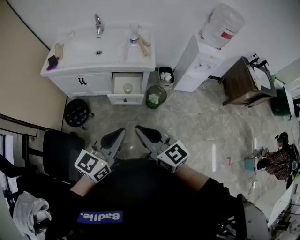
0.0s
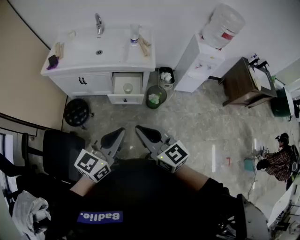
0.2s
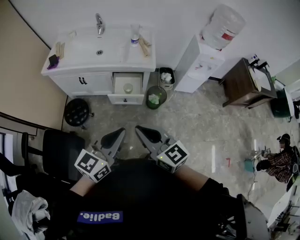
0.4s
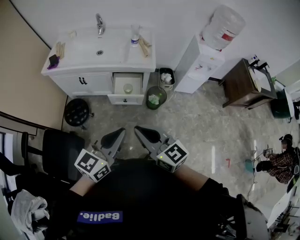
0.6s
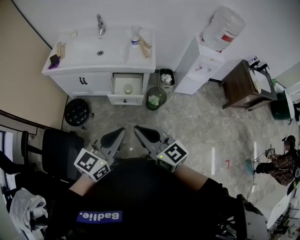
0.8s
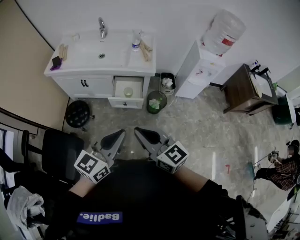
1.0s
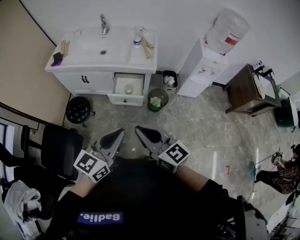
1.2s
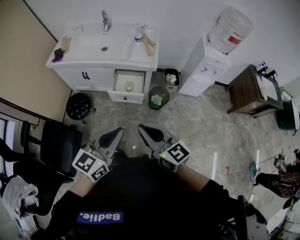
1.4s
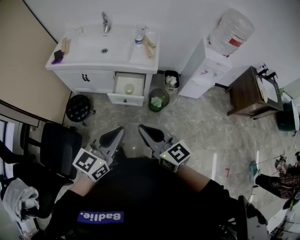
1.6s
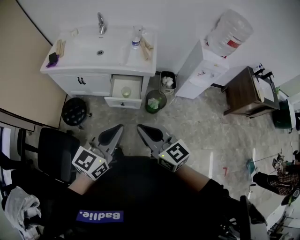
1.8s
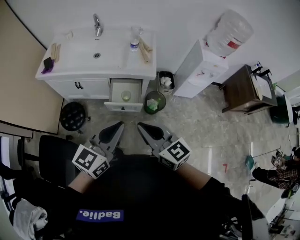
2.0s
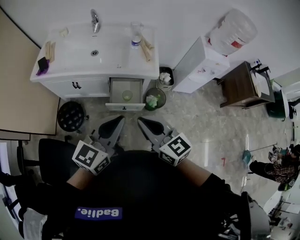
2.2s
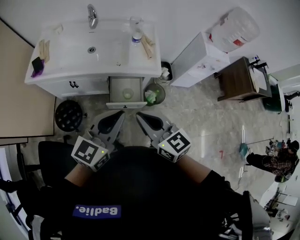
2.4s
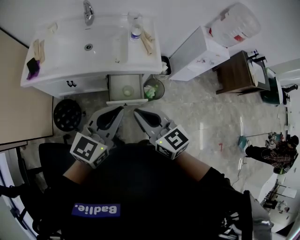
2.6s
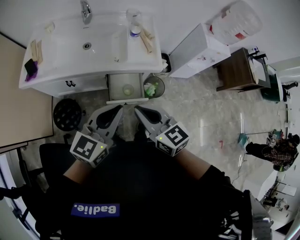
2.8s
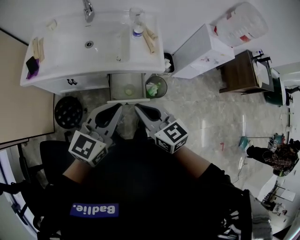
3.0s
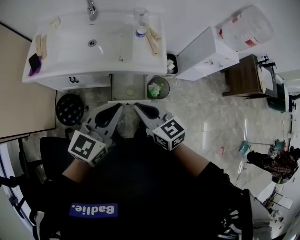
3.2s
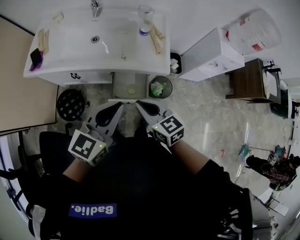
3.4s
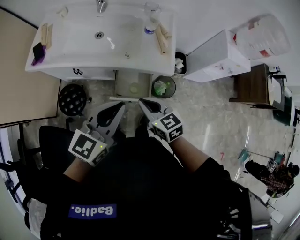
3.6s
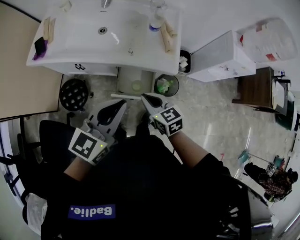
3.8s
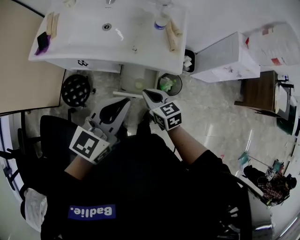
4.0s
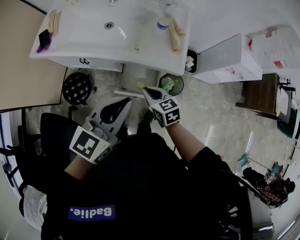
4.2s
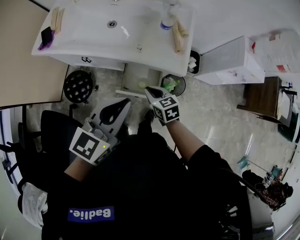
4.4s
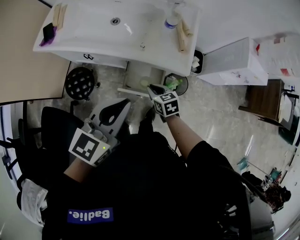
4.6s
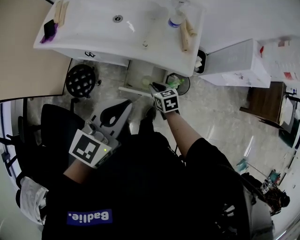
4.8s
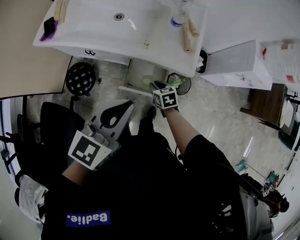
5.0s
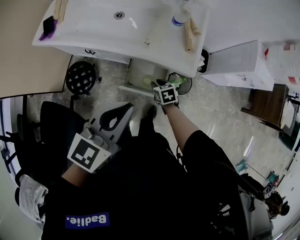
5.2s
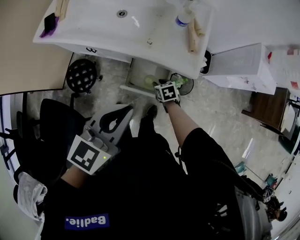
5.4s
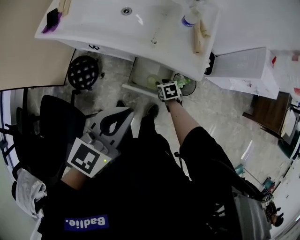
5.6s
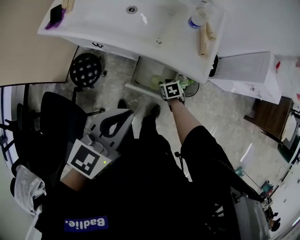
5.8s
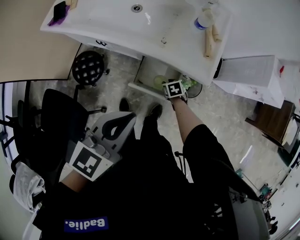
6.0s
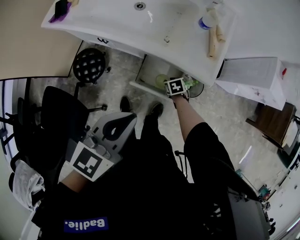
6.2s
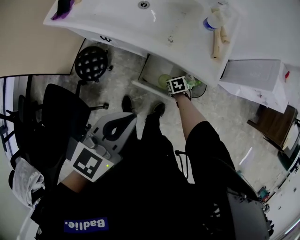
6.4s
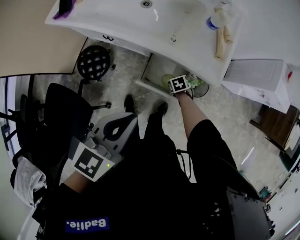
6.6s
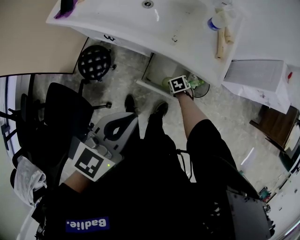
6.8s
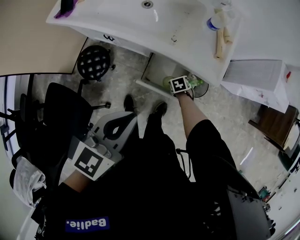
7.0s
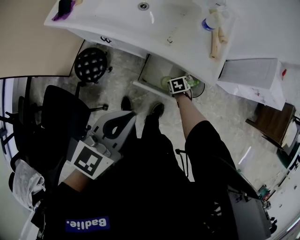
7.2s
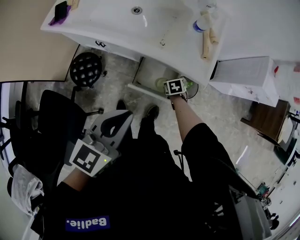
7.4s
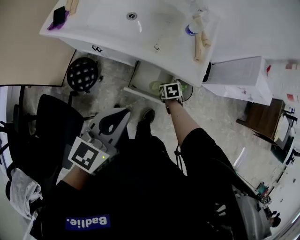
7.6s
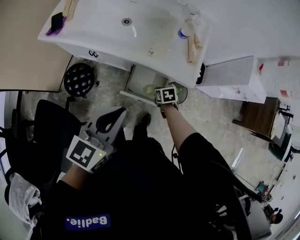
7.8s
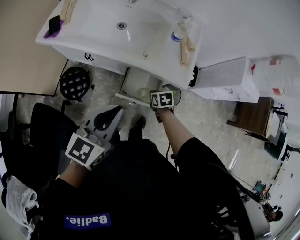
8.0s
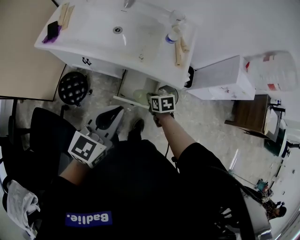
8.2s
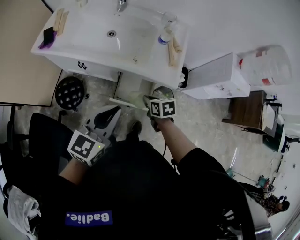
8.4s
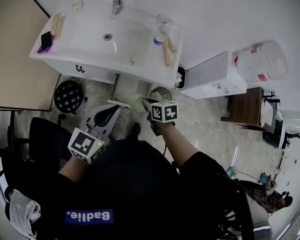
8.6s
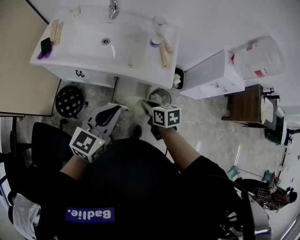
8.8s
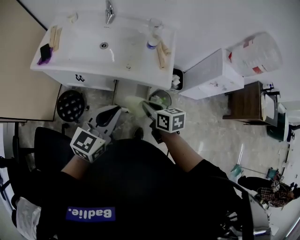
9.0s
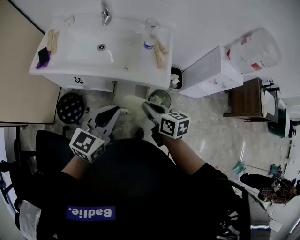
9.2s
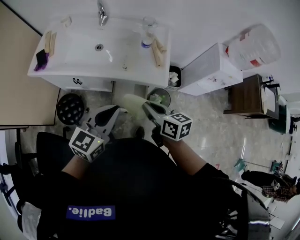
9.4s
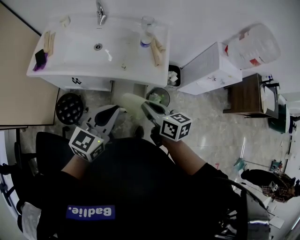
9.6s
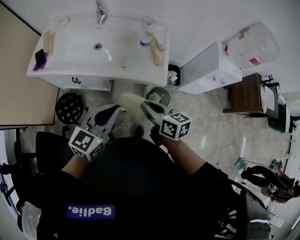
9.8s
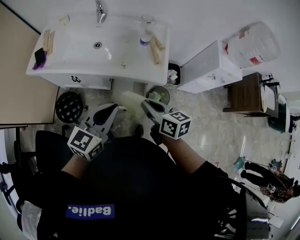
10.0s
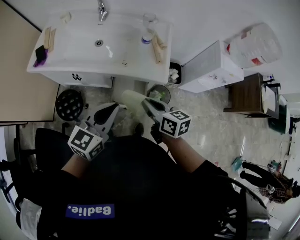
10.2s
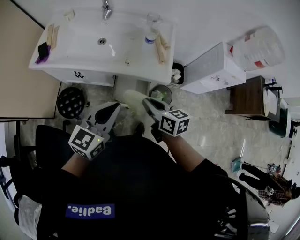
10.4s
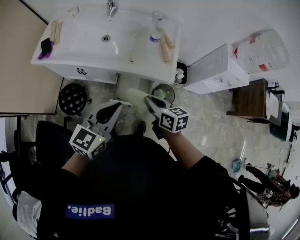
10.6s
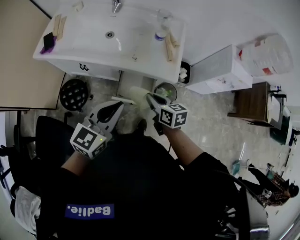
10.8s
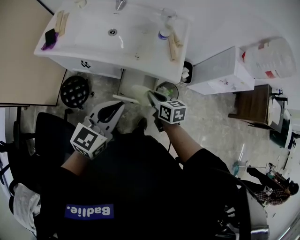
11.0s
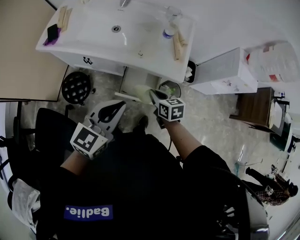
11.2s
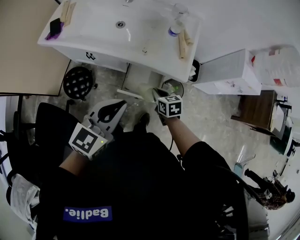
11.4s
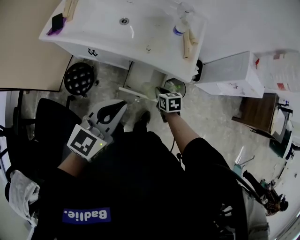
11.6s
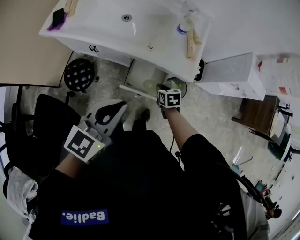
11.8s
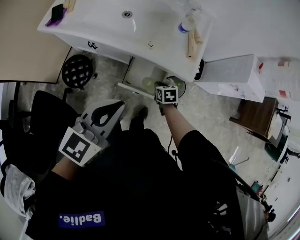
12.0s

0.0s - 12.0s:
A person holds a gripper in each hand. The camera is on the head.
0.0s - 1.6s: The right gripper travels to the right by approximately 5 cm.
1.6s - 3.0s: Both grippers move forward and to the left, some 30 cm.
3.0s - 4.4s: The right gripper moves downward and forward, roughly 25 cm, and turns by about 20 degrees; the left gripper shifts by about 5 cm.
4.4s - 6.0s: The right gripper heads downward, covering roughly 25 cm, rotates about 30 degrees, and opens its fingers; the left gripper moves downward, some 5 cm.
6.0s - 7.6s: The right gripper goes some 5 cm upward, and closes up.
7.6s - 9.0s: The right gripper travels upward by about 30 cm, and tips its fingers upward by about 30 degrees.
10.4s - 12.0s: The right gripper goes roughly 25 cm downward, and tips its fingers downward by approximately 30 degrees.

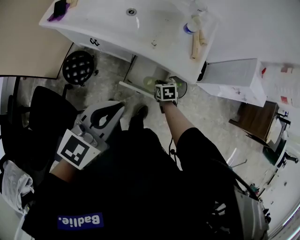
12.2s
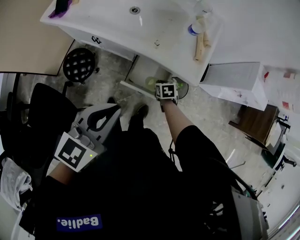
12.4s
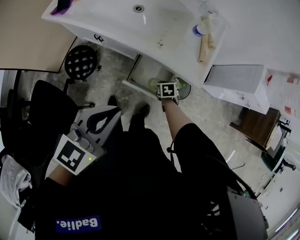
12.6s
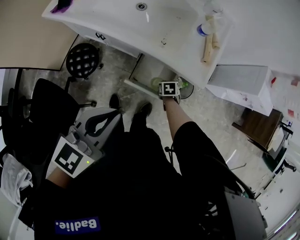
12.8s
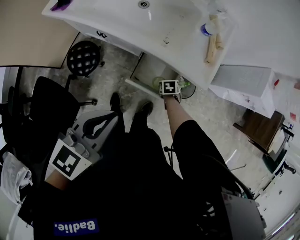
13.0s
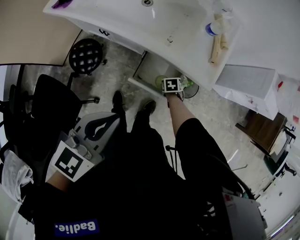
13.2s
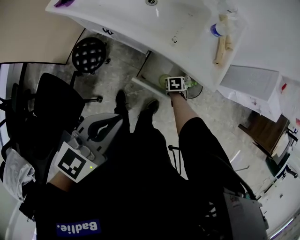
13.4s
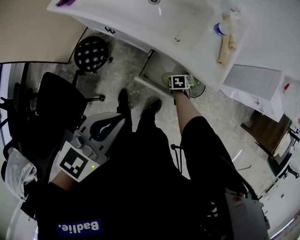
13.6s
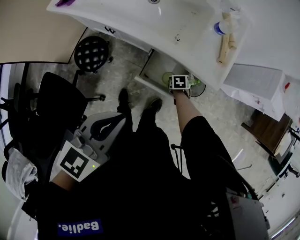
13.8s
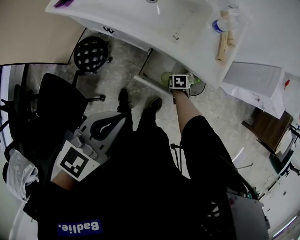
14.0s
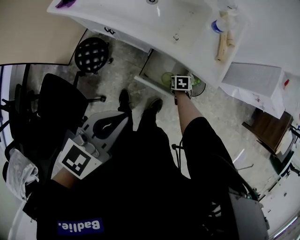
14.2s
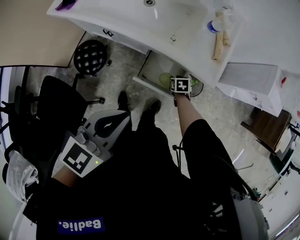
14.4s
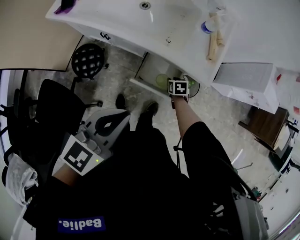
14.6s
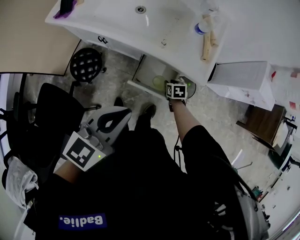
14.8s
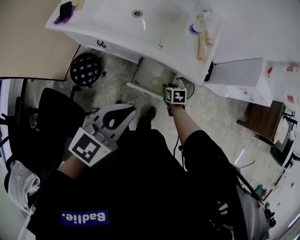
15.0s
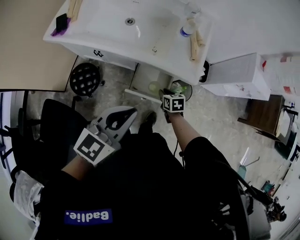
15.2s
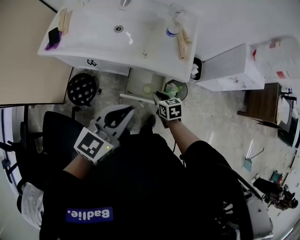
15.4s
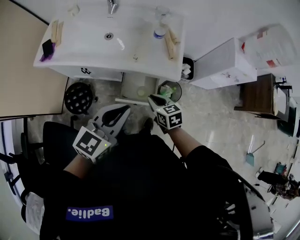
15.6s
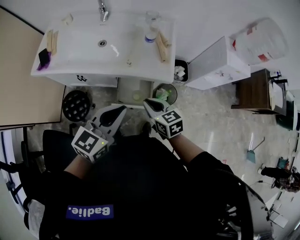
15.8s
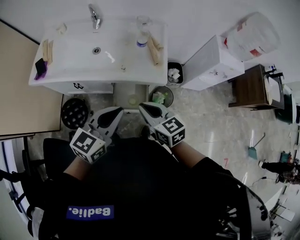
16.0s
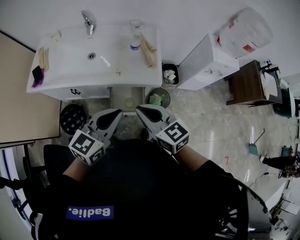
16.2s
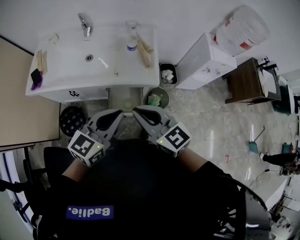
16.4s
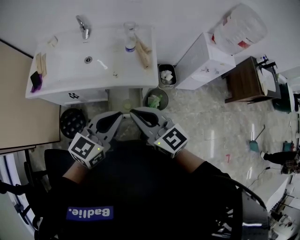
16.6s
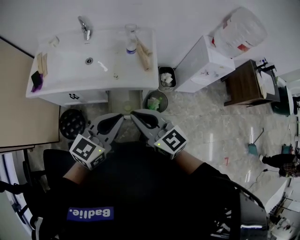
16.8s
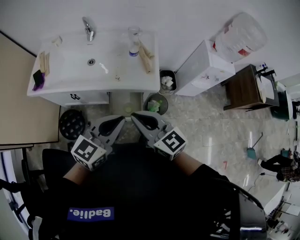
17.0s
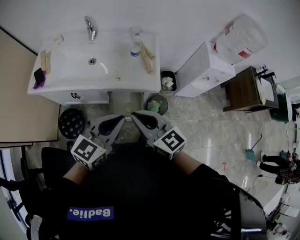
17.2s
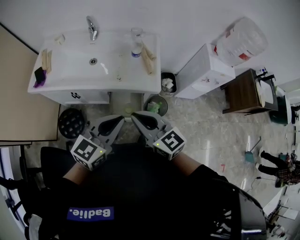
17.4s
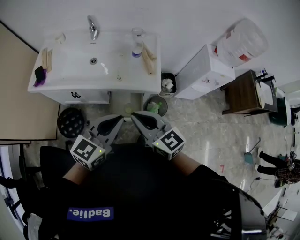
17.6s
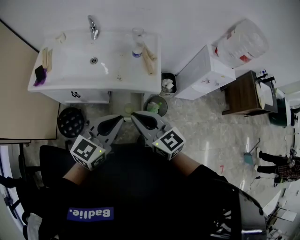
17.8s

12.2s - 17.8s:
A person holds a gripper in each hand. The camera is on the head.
12.2s - 13.6s: The left gripper travels downward by approximately 5 cm, while the right gripper shifts some 10 cm downward.
13.6s - 15.0s: The left gripper moves approximately 5 cm. Meanwhile the right gripper travels upward by roughly 10 cm, and opens up.
15.0s - 16.4s: The right gripper heads upward, covering approximately 40 cm, tilts its fingers about 50 degrees upward, and closes up; the left gripper is displaced to the right and upward by roughly 10 cm.
16.4s - 17.8s: The grippers make only small movements.

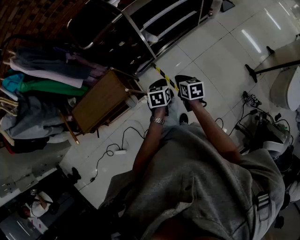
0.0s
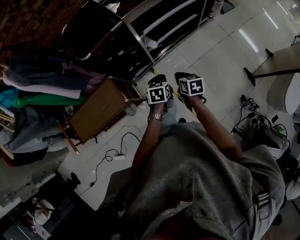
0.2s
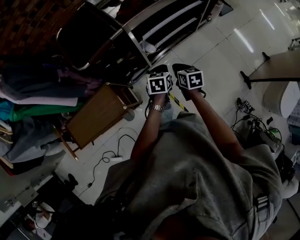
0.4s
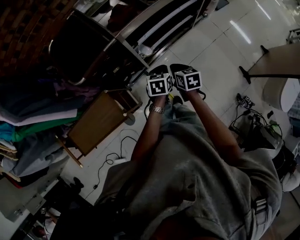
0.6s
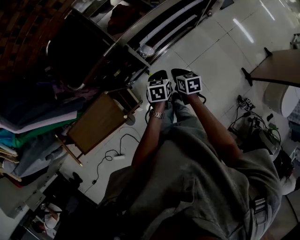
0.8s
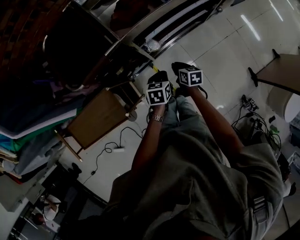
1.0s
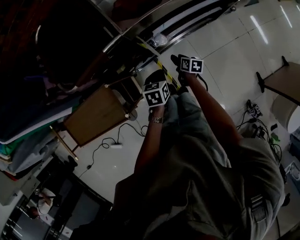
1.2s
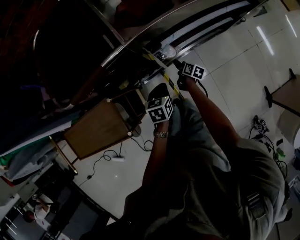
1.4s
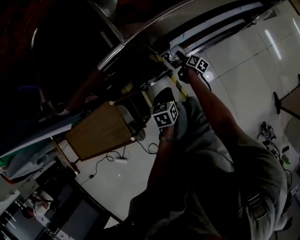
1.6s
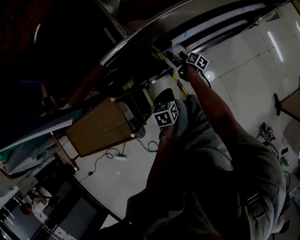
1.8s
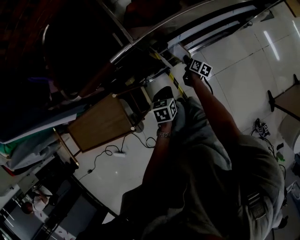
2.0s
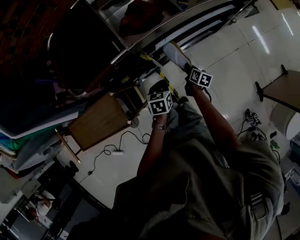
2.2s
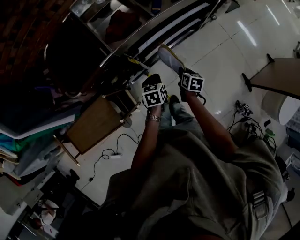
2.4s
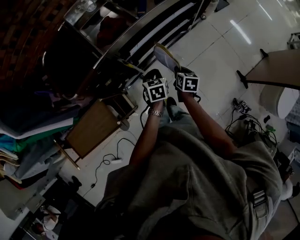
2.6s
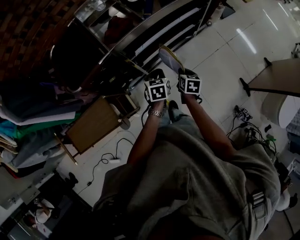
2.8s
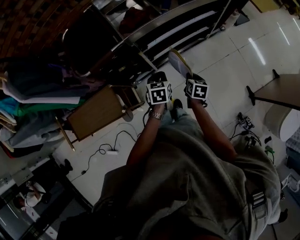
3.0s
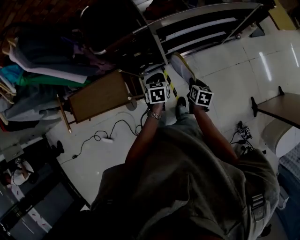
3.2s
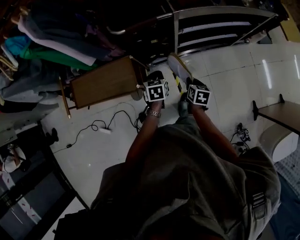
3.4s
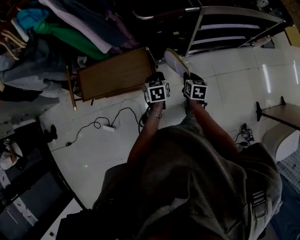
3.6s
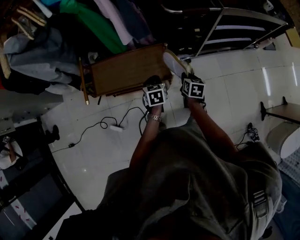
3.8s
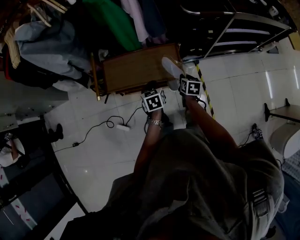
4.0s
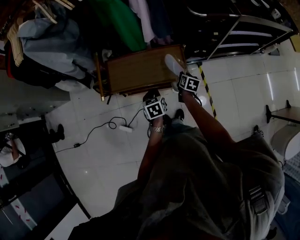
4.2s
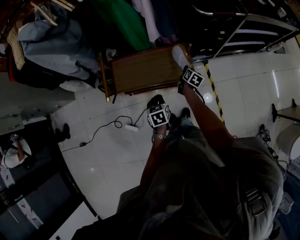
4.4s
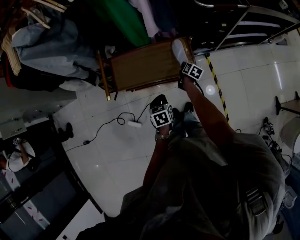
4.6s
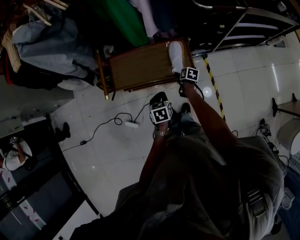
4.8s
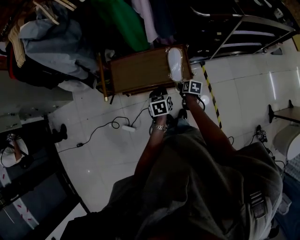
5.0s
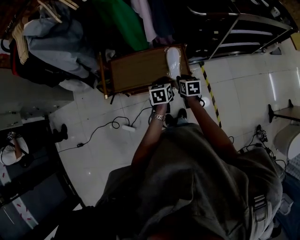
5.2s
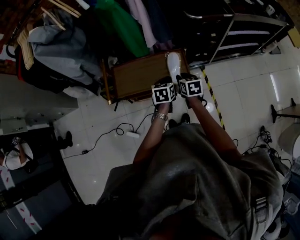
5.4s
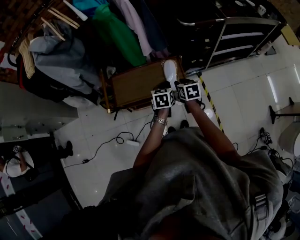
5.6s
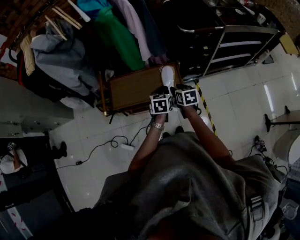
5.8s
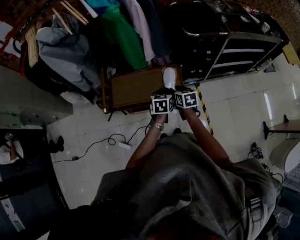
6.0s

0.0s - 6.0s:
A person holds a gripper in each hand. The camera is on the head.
0.0s - 1.6s: The right gripper shifts roughly 70 cm downward and forward, rotates around the line of its fingers by about 40 degrees, clockwise from behind, and opens its fingers; the left gripper travels forward and downward by roughly 40 cm.
1.6s - 3.0s: The right gripper goes some 50 cm upward and backward, changes its angle by some 40 degrees, and closes; the left gripper travels upward and to the right by roughly 30 cm.
3.0s - 4.4s: The pair of grippers is taken to the left, some 70 cm. The left gripper swivels roughly 30 degrees.
4.4s - 6.0s: The left gripper shifts roughly 15 cm to the right, upward and forward, while the right gripper is displaced upward and backward by some 20 cm, changes its angle by some 40 degrees, and opens and closes again.
